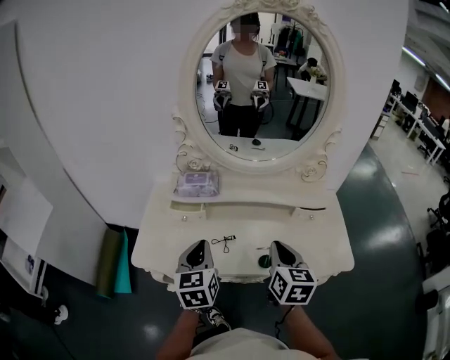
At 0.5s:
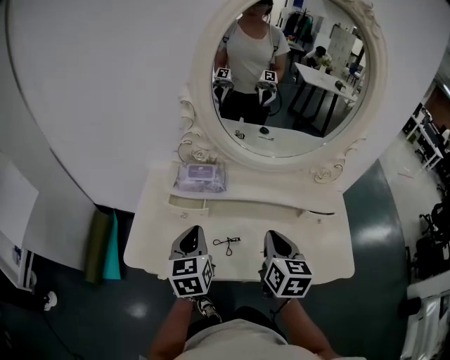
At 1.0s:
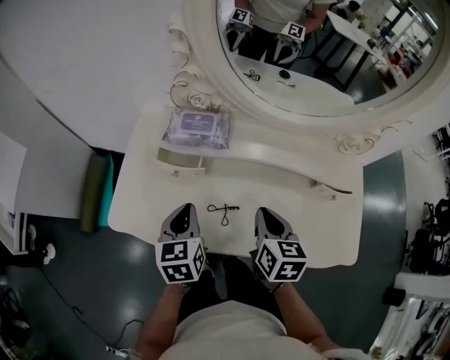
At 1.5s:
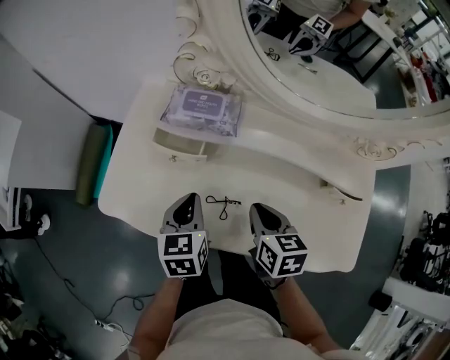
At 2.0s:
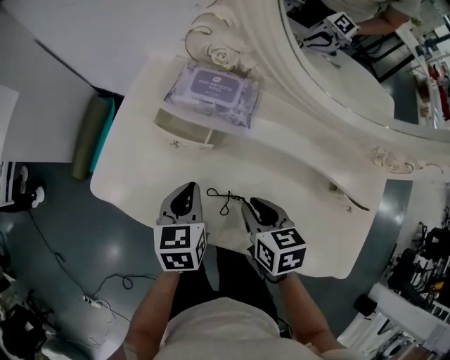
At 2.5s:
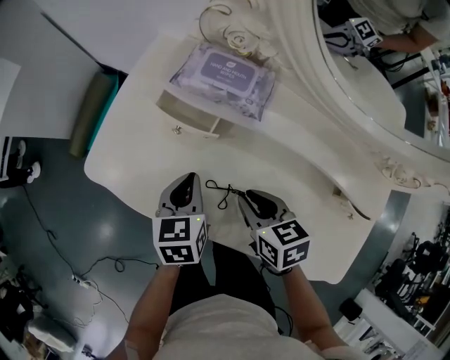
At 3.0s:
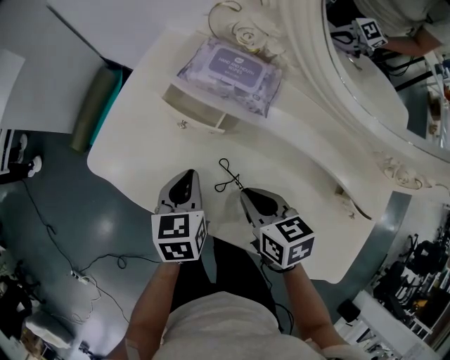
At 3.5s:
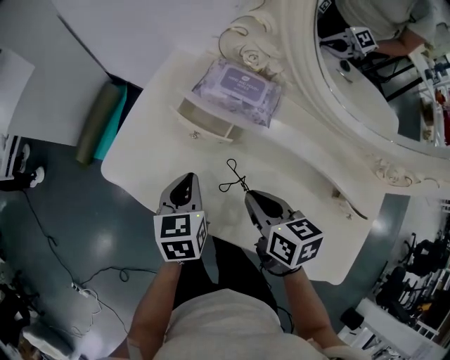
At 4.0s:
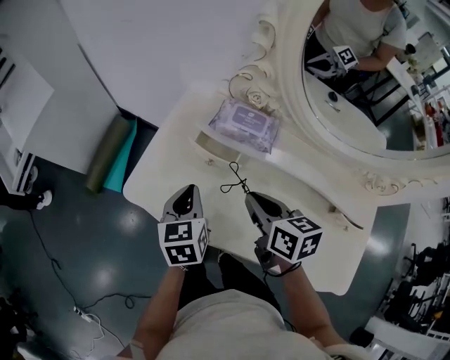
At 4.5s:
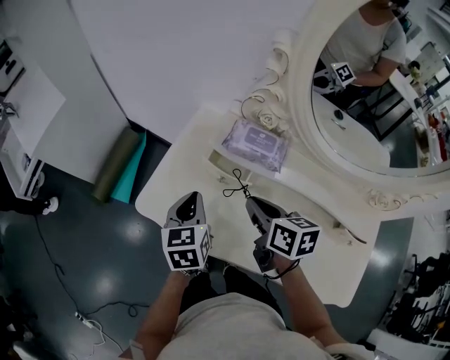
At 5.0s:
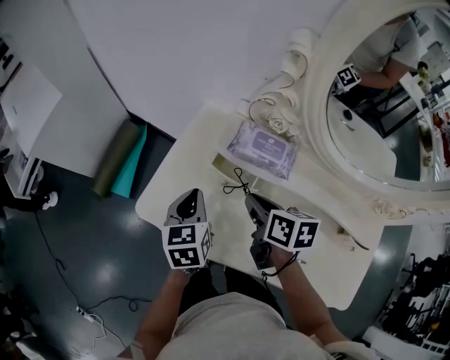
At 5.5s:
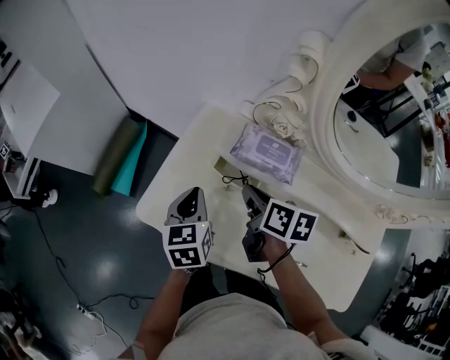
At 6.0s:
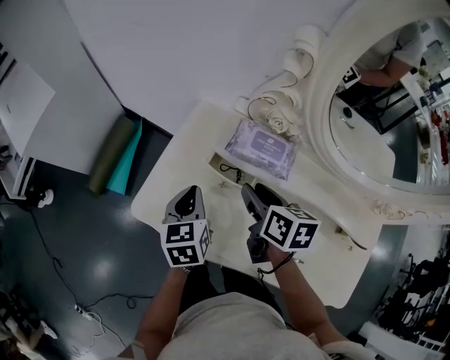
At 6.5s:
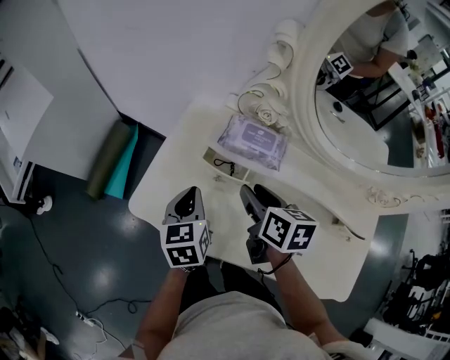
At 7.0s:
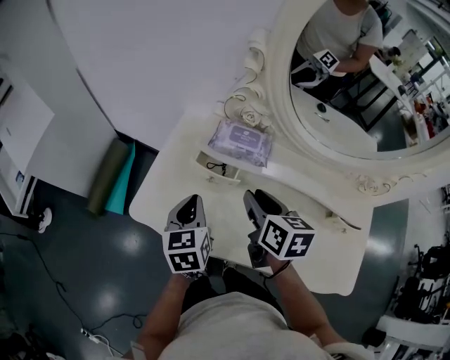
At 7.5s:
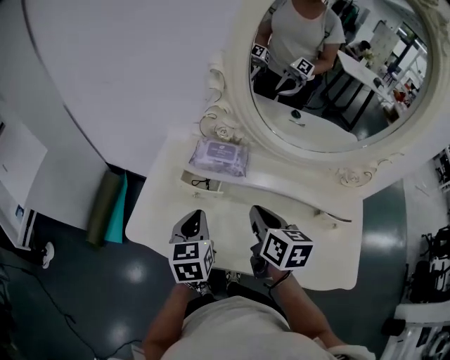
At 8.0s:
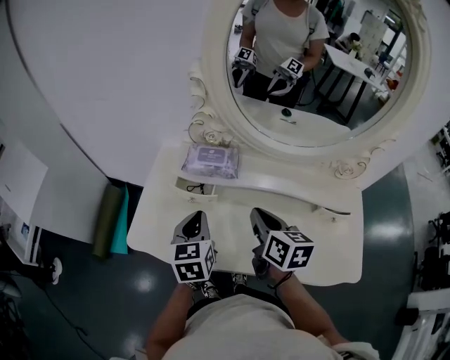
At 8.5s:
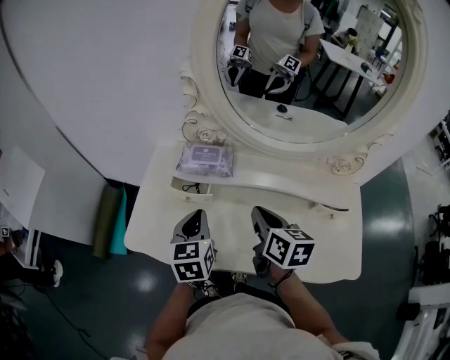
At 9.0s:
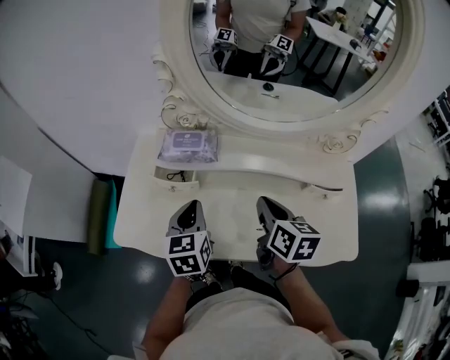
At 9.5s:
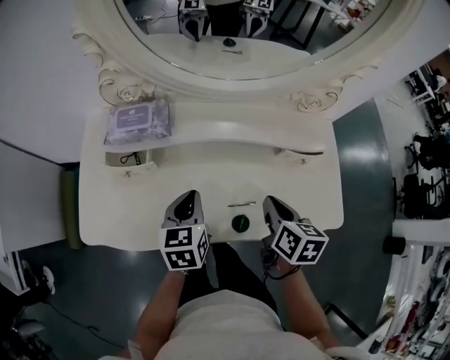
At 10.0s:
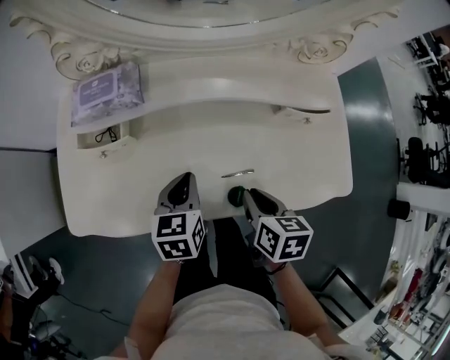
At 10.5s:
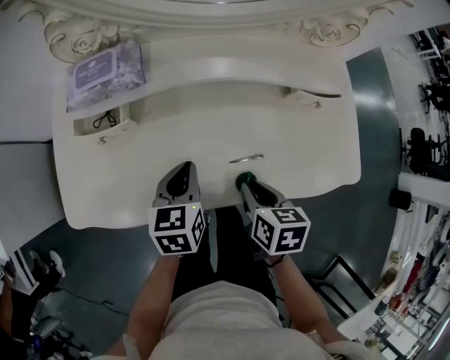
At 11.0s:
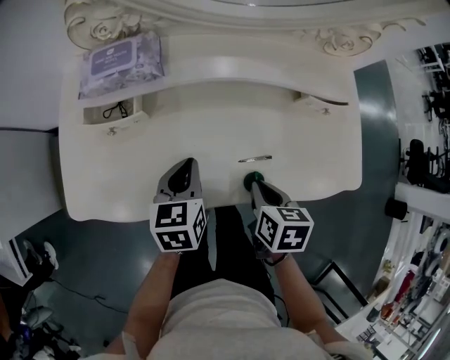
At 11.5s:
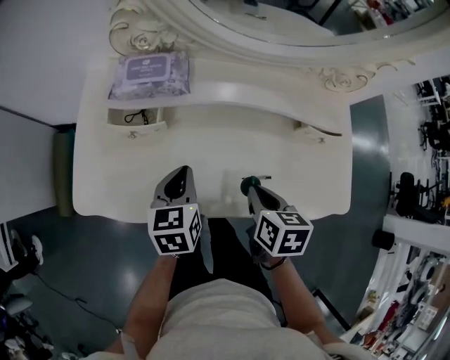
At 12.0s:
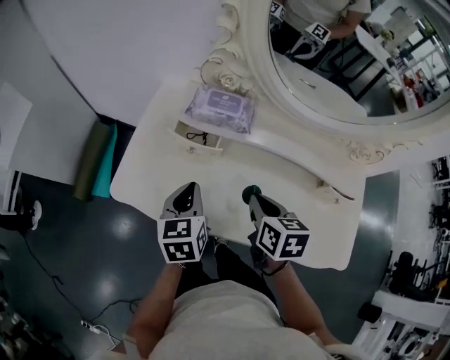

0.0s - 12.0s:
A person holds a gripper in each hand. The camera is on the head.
0.0s - 2.0s: Both grippers travel together downward, roughly 20 cm. The right gripper turns by approximately 50 degrees. Meanwhile the left gripper rotates some 30 degrees.
2.0s - 4.0s: The right gripper shifts some 15 cm upward, forward and to the left. The left gripper travels to the left and upward by approximately 10 cm.
4.0s - 6.0s: The two grippers go approximately 10 cm forward. The right gripper opens its fingers.
6.0s - 8.0s: The left gripper moves to the right, backward and upward, roughly 15 cm. The right gripper shifts roughly 15 cm backward, to the right and upward, turns by approximately 20 degrees, and closes up.
8.0s - 10.0s: The left gripper travels to the right and downward by approximately 20 cm, and swivels about 30 degrees; the right gripper is displaced downward, to the right and backward by about 25 cm, and rotates about 30 degrees.
10.0s - 12.0s: The right gripper moves to the left, forward and upward, about 20 cm, and changes its angle by about 30 degrees, while the left gripper travels to the left by about 15 cm, and swivels approximately 30 degrees.

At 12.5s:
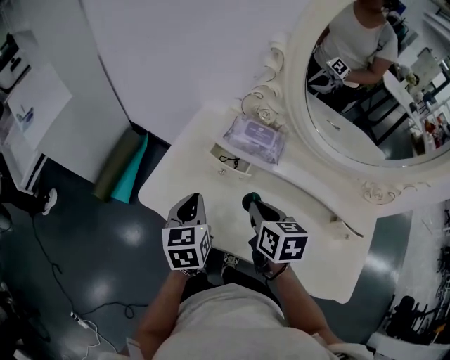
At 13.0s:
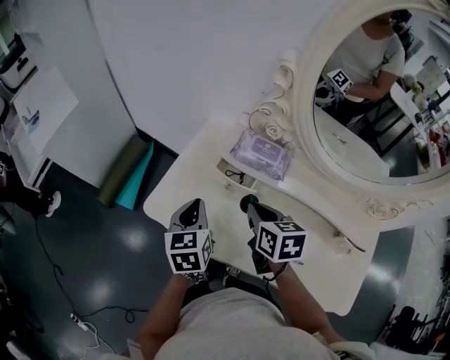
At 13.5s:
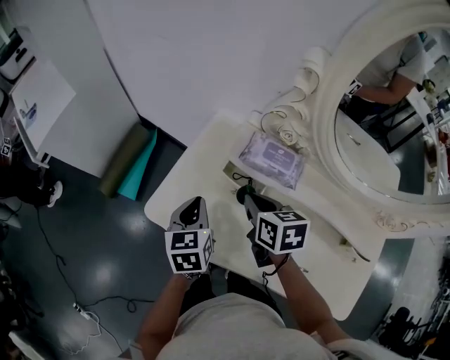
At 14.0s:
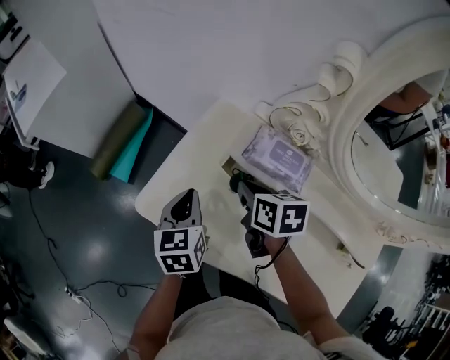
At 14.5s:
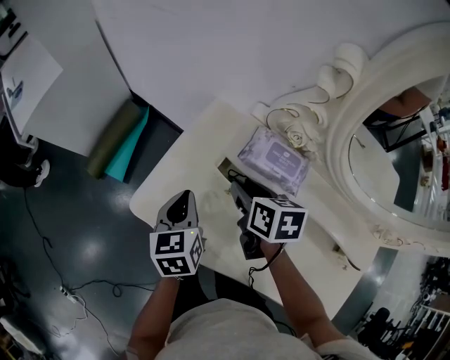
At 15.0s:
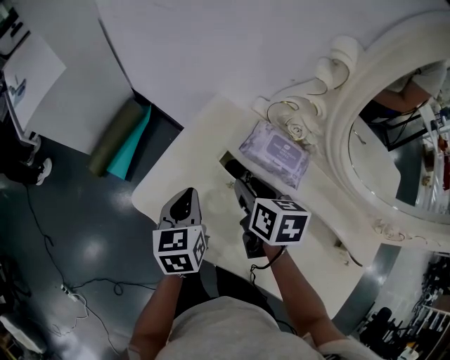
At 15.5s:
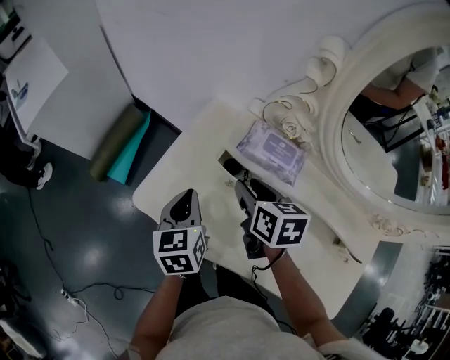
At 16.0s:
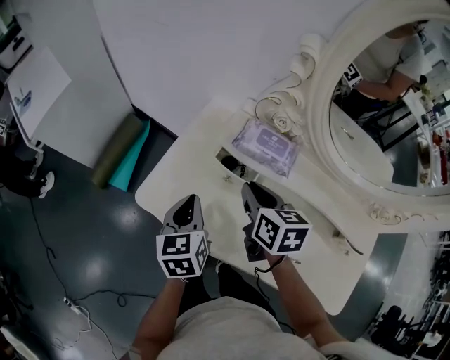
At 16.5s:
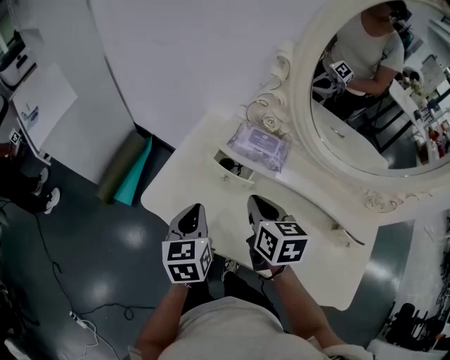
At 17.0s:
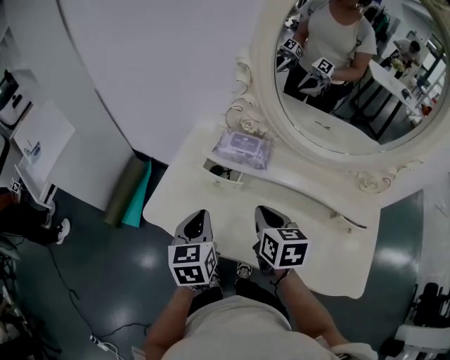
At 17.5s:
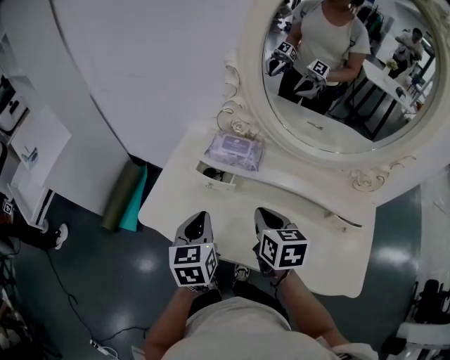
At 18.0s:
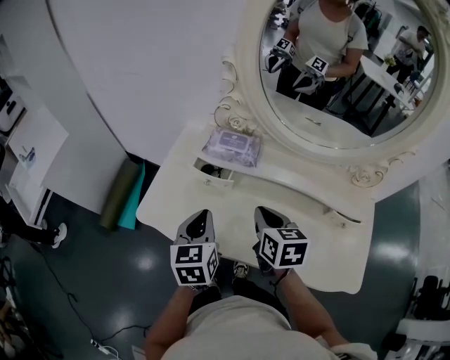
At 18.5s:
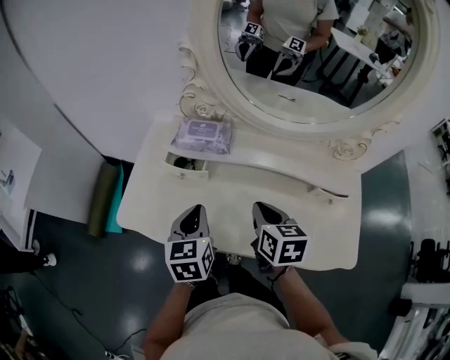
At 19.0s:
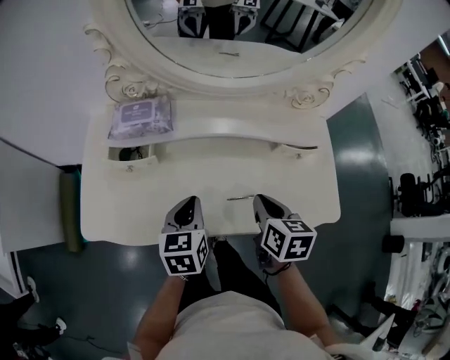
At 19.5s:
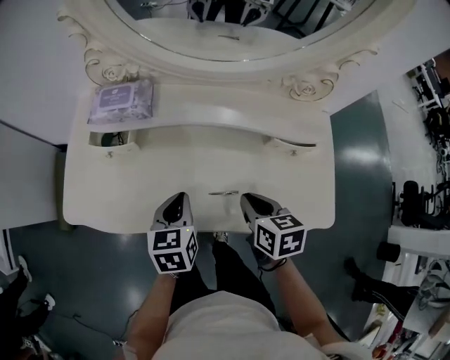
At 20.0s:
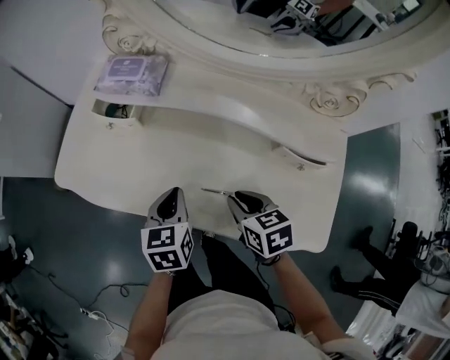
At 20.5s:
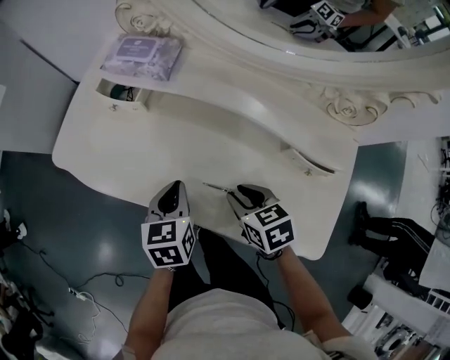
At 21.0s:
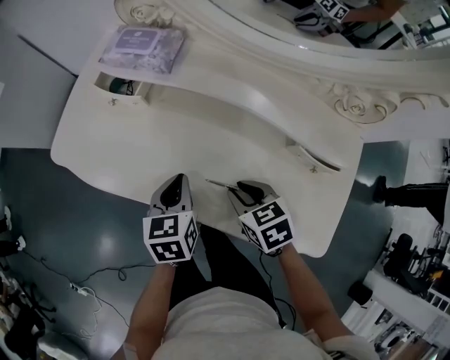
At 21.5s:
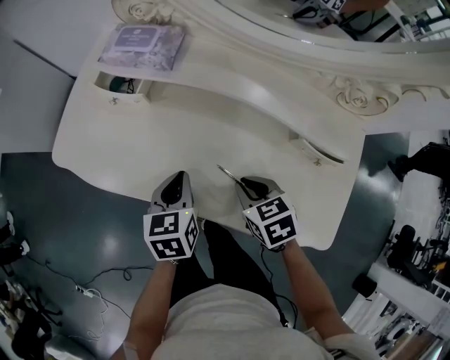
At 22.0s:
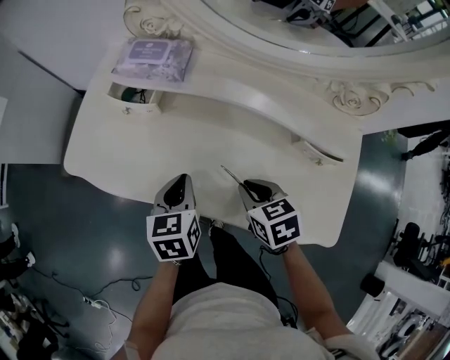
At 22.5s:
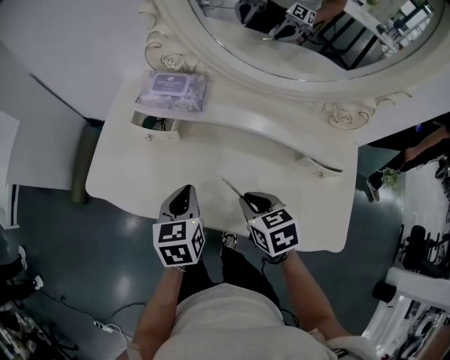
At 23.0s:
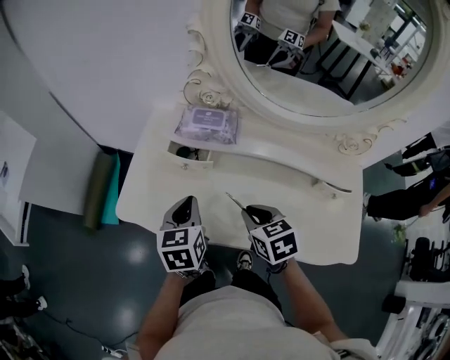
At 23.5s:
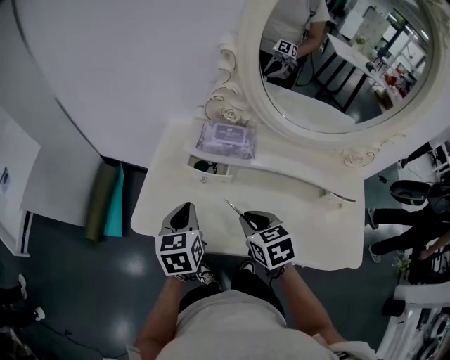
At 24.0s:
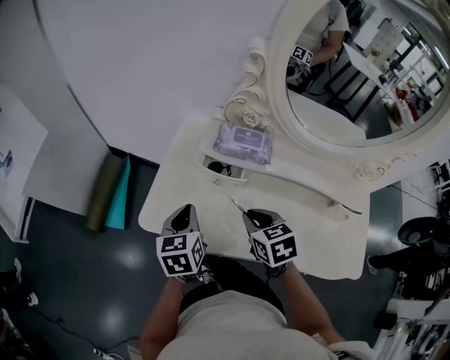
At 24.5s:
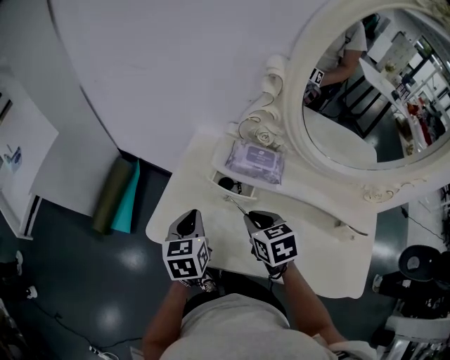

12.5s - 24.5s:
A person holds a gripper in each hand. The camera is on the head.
12.5s - 14.5s: The right gripper heads forward, covering some 15 cm, and opens up, while the left gripper moves forward, about 10 cm.
14.5s - 16.5s: The grippers both shift backward and upward by about 10 cm. The right gripper closes its fingers.
16.5s - 18.5s: The left gripper goes about 10 cm to the right; the right gripper goes about 15 cm to the right and backward.
18.5s - 20.5s: The right gripper travels downward by about 15 cm, rotates approximately 40 degrees, and opens its fingers. Meanwhile the left gripper moves about 20 cm.
20.5s - 22.5s: The right gripper moves to the left, approximately 5 cm. Meanwhile the left gripper heads to the left and upward, covering approximately 10 cm.
22.5s - 24.5s: Both grippers travel together to the left and forward, roughly 25 cm.

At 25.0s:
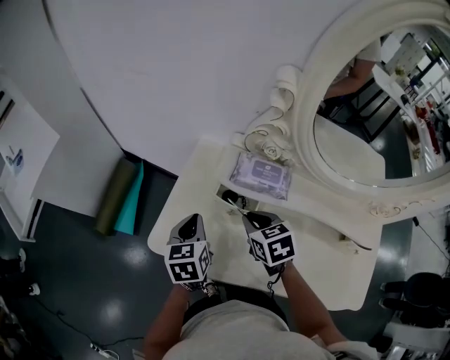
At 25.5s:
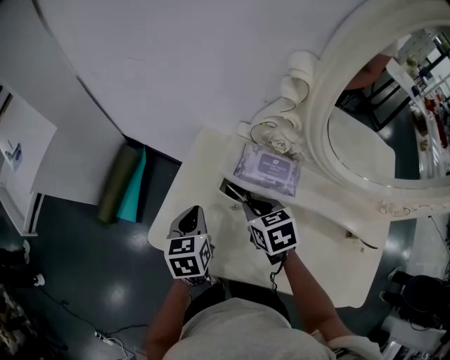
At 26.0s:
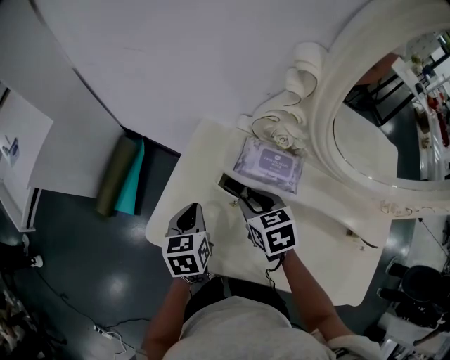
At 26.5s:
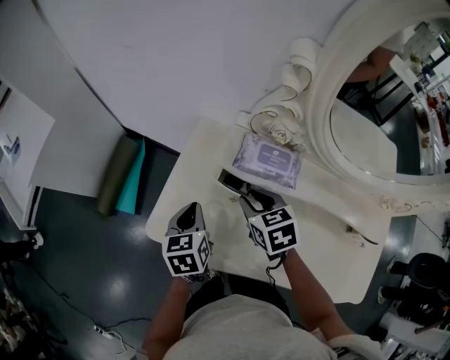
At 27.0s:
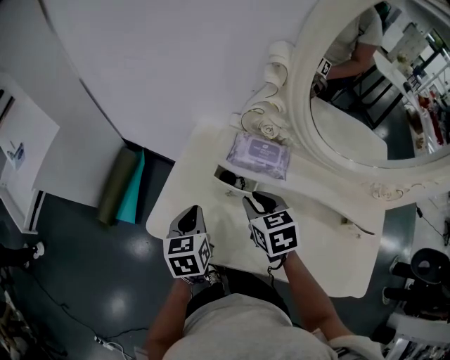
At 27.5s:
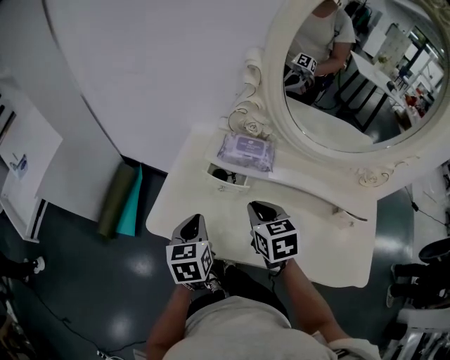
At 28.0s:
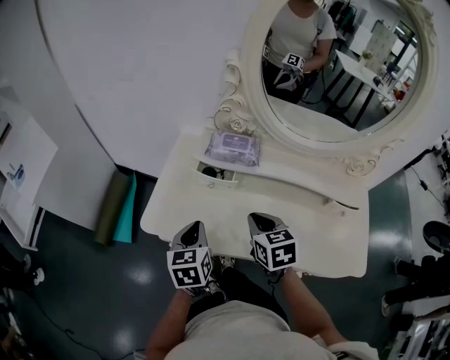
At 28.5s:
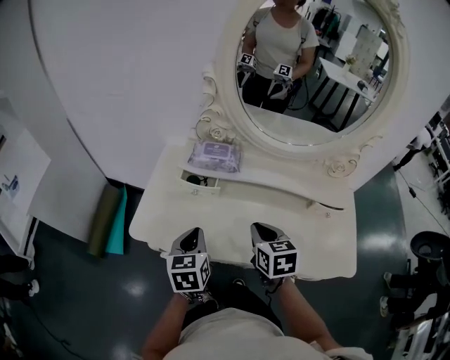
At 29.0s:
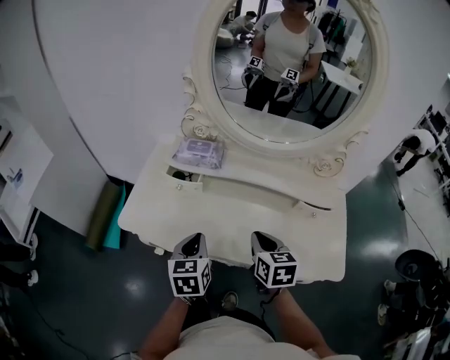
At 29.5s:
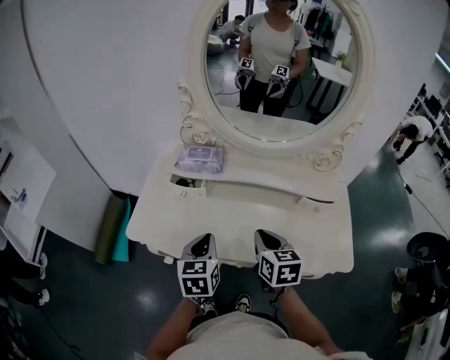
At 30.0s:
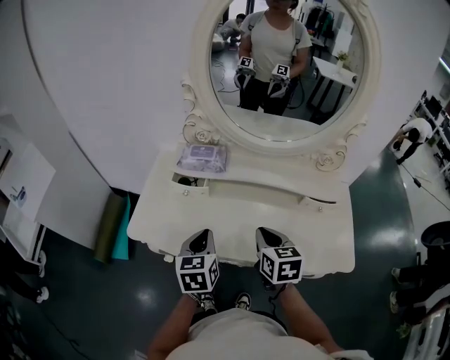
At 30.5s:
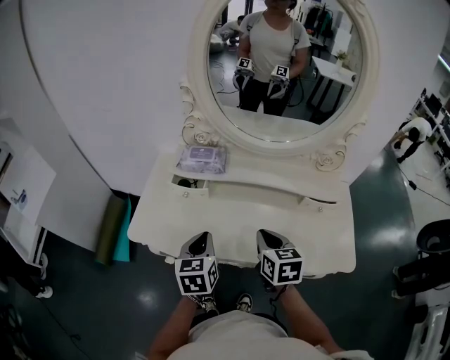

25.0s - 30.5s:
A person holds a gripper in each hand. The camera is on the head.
25.0s - 27.0s: There are only small adjustments of the grippers.
27.0s - 28.5s: Both grippers travel together backward and to the right, about 15 cm. The right gripper turns by approximately 20 degrees.
28.5s - 30.5s: Both grippers travel together to the right, about 5 cm.
